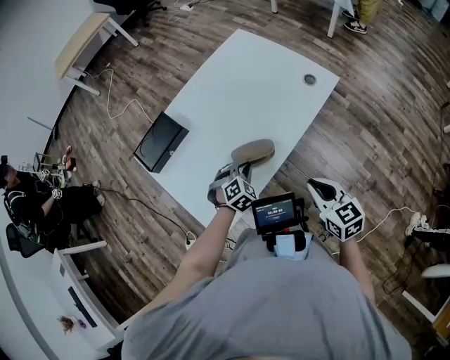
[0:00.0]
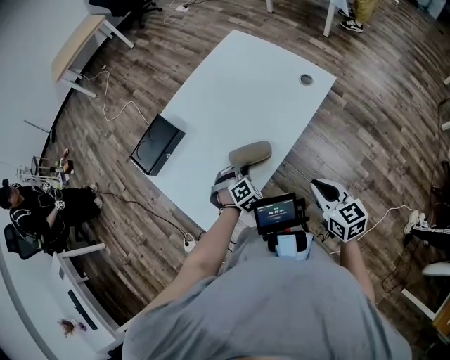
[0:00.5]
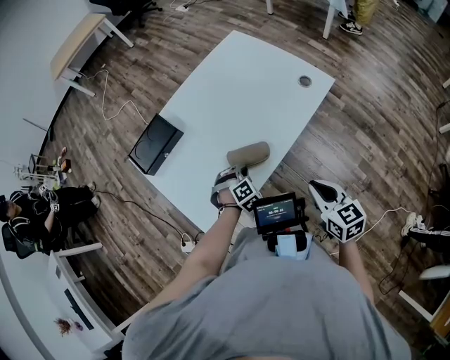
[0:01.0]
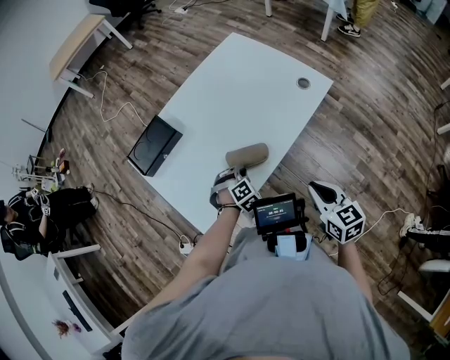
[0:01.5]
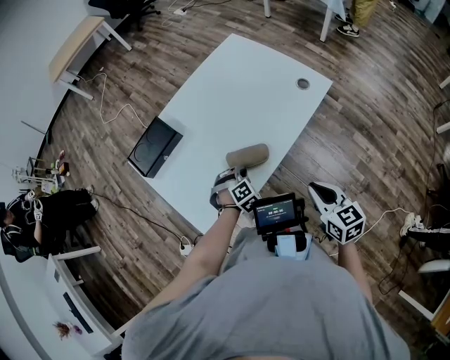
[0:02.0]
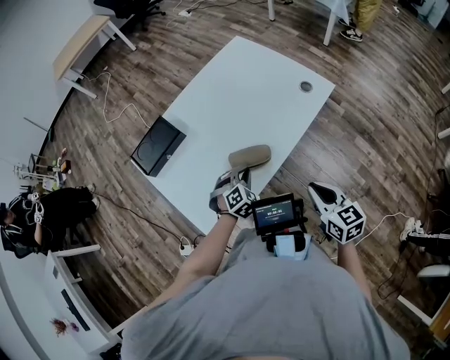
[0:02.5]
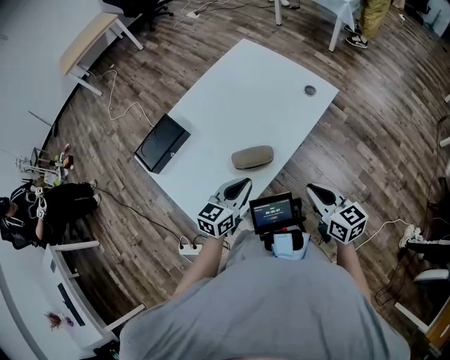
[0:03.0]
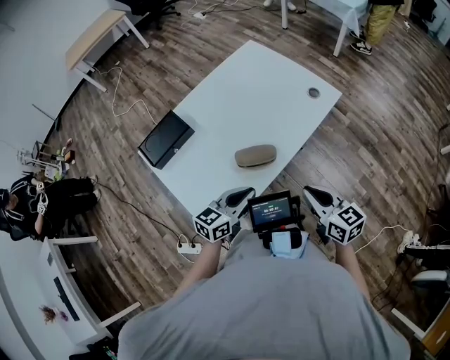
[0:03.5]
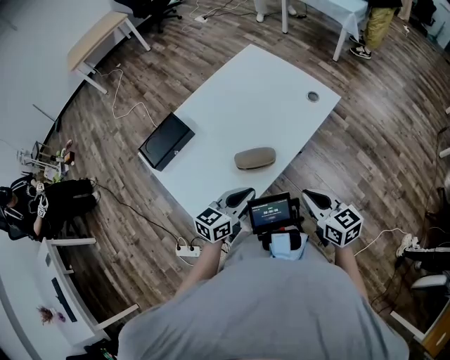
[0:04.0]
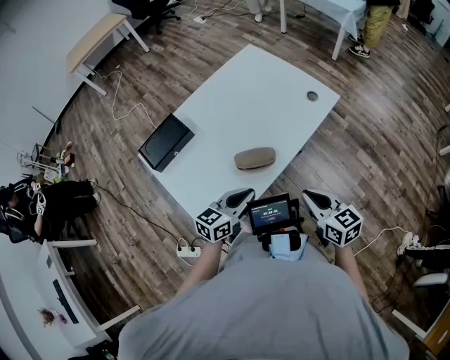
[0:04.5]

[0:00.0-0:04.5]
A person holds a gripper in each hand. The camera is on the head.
0:00.0 to 0:02.0: The grippers stay close to where they were, moving slightly.
0:02.0 to 0:04.5: The left gripper travels upward and backward by some 15 cm, and angles its fingers upward, by approximately 40 degrees.

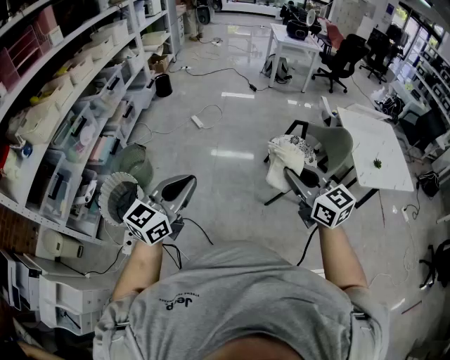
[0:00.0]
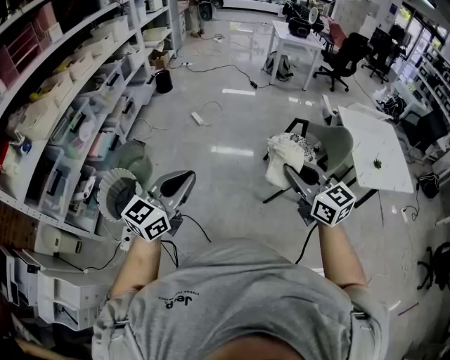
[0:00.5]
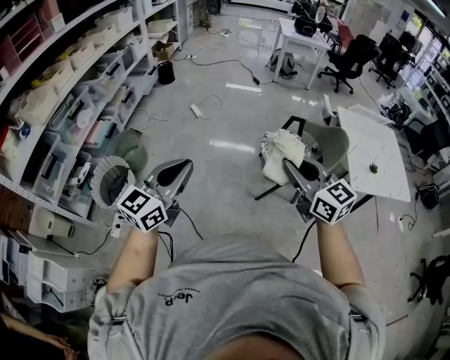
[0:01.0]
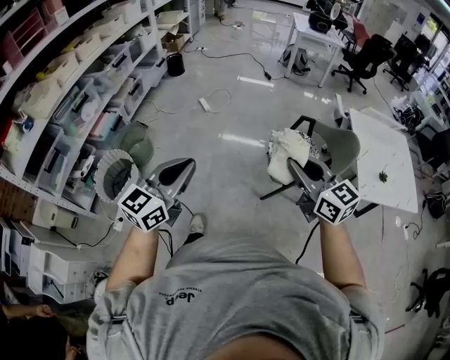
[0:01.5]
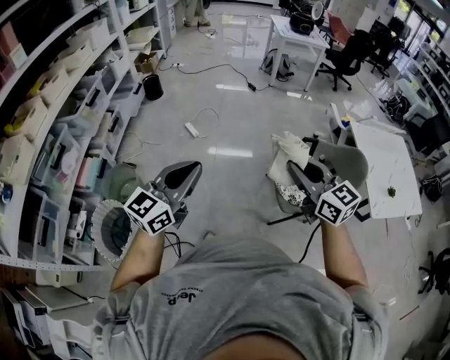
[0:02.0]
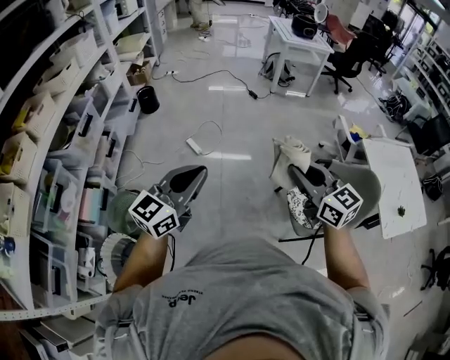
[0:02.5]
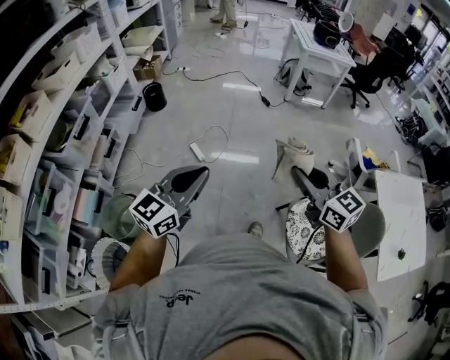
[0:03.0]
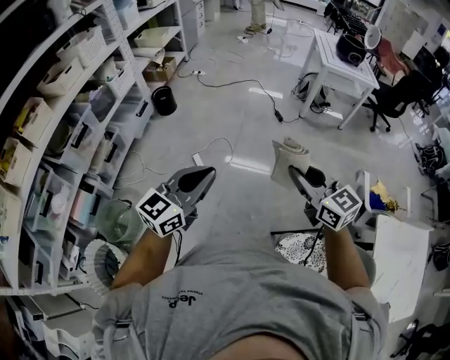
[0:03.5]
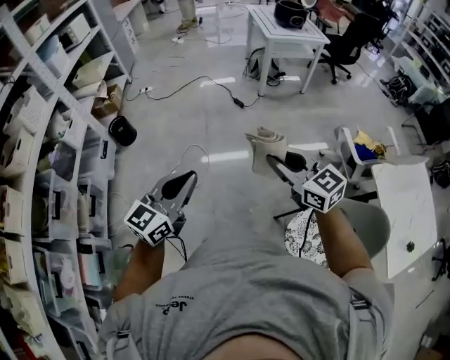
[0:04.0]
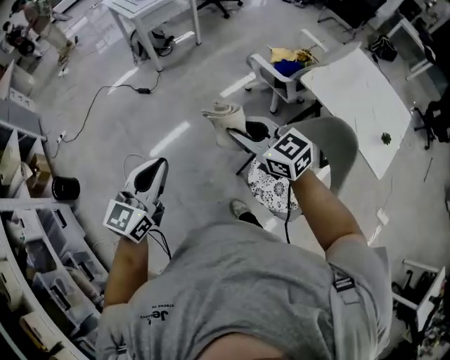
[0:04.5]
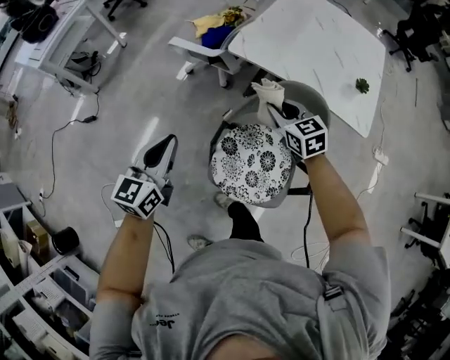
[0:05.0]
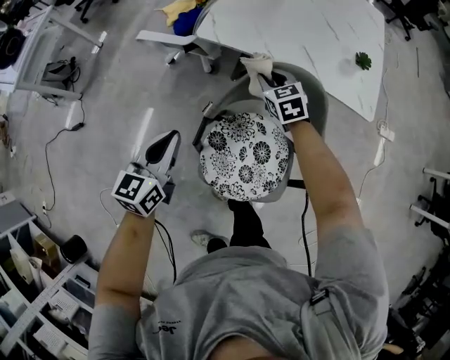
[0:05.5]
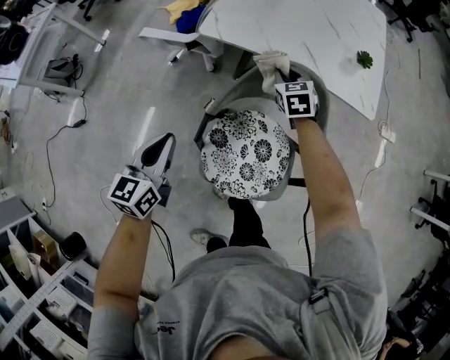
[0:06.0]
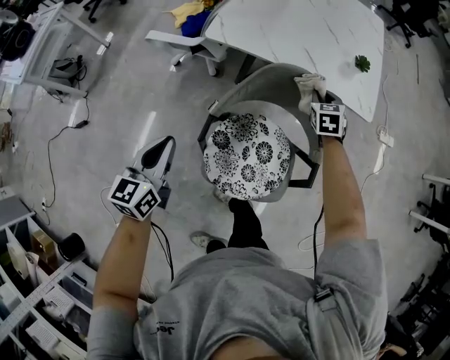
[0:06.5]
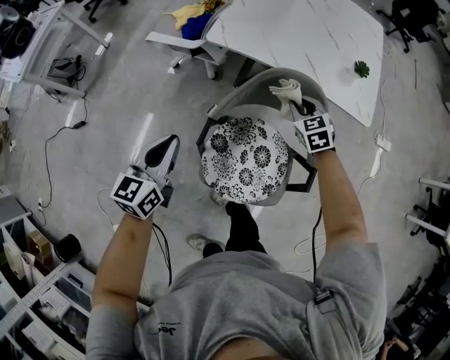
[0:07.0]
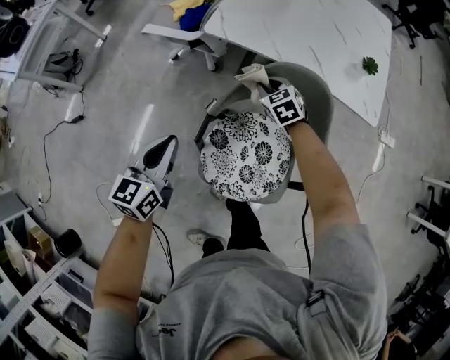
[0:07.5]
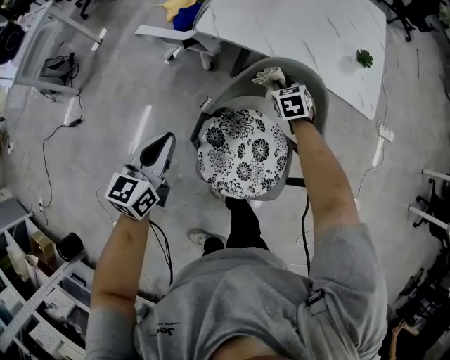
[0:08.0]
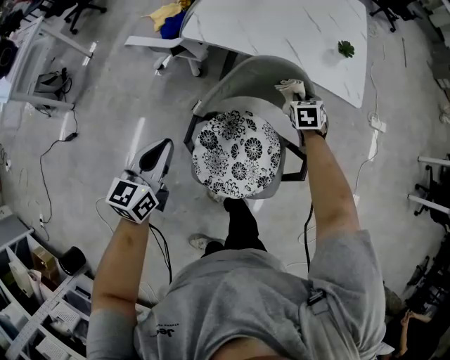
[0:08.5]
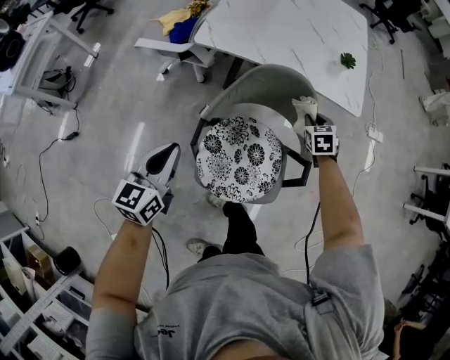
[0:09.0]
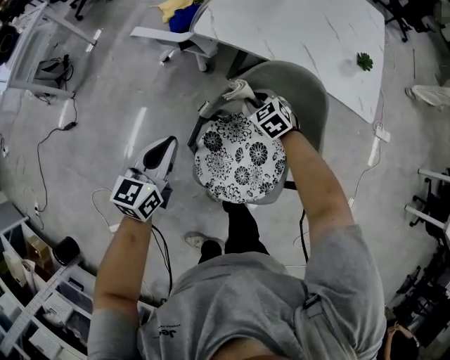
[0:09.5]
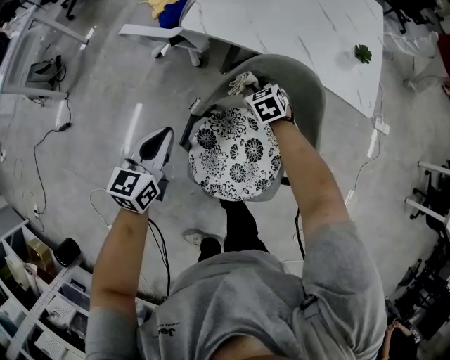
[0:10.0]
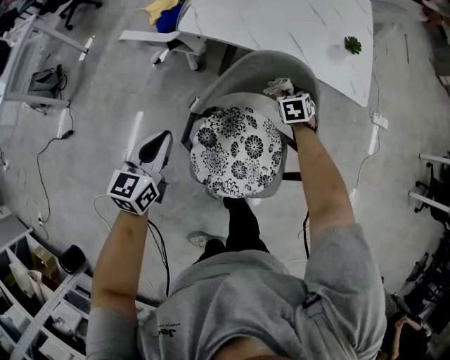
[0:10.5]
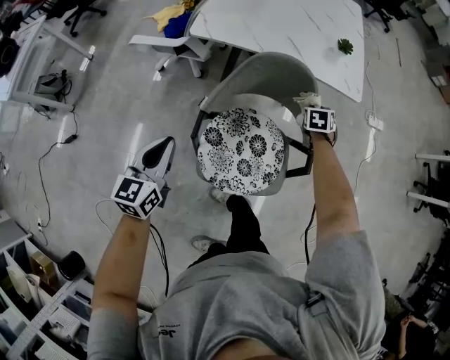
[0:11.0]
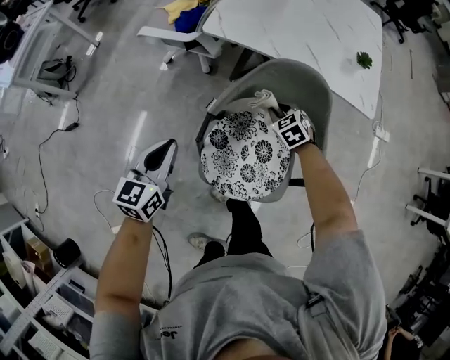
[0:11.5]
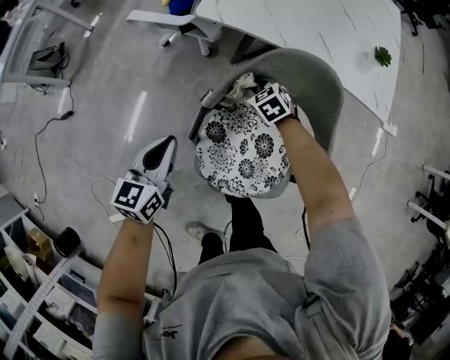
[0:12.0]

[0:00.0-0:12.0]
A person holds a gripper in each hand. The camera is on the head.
0:00.0 to 0:02.0: The two grippers go approximately 30 cm forward.
0:02.0 to 0:04.0: The two grippers travel together, forward, some 60 cm.
0:04.0 to 0:06.0: The two grippers travel together, roughly 70 cm. The left gripper turns by roughly 50 degrees. The right gripper tilts its fingers approximately 30 degrees downward.
0:06.0 to 0:08.0: The right gripper goes left and right, some 20 cm each way, reversing 2 times.
0:08.0 to 0:10.0: The two grippers go some 5 cm downward. The right gripper travels to the right and back again, roughly 15 cm each way.

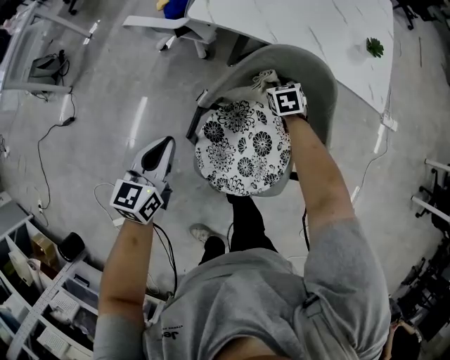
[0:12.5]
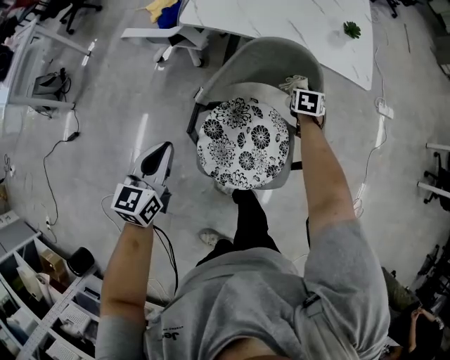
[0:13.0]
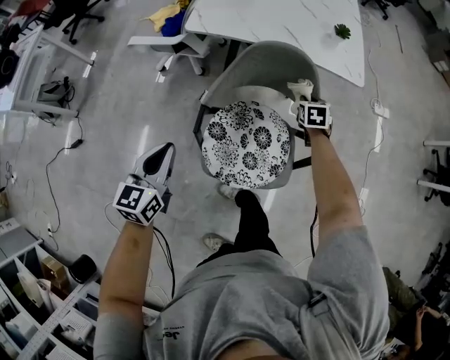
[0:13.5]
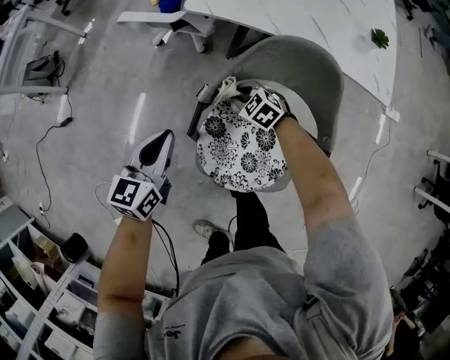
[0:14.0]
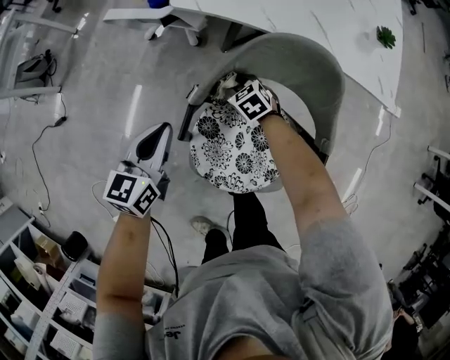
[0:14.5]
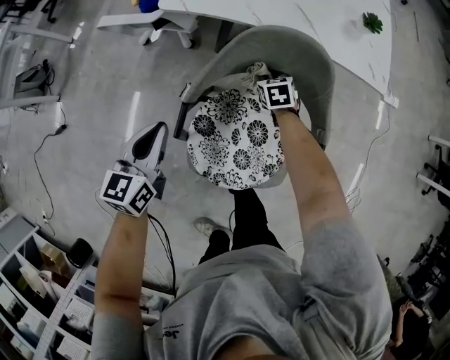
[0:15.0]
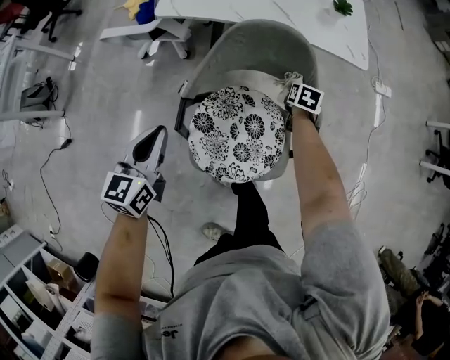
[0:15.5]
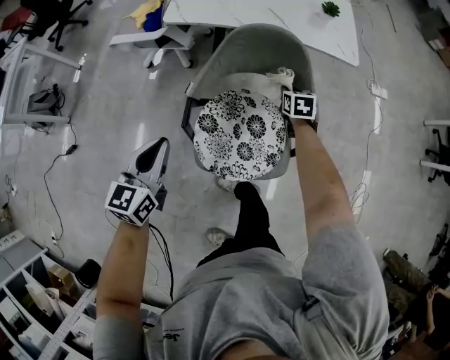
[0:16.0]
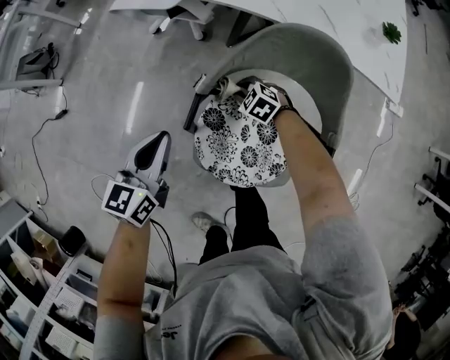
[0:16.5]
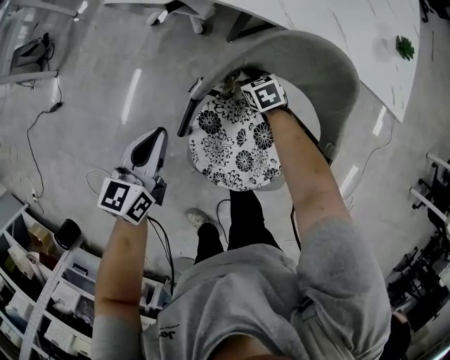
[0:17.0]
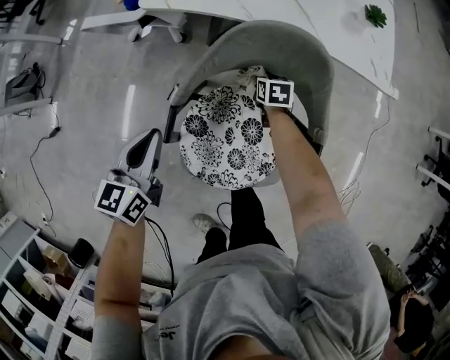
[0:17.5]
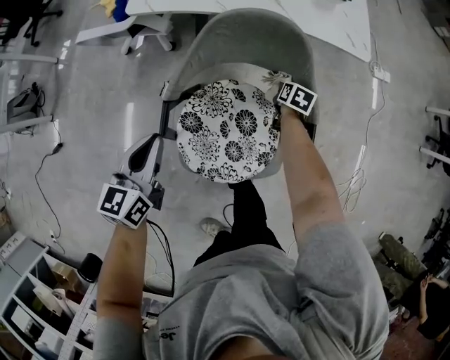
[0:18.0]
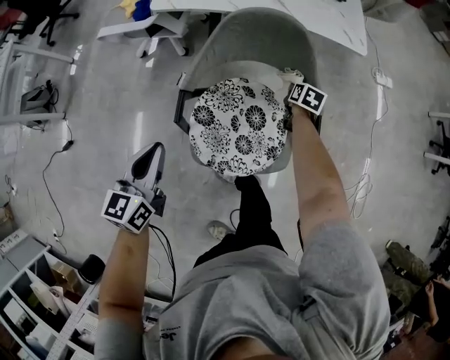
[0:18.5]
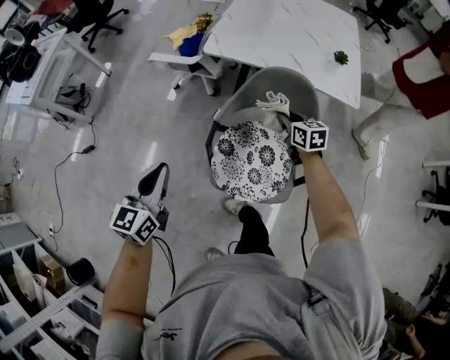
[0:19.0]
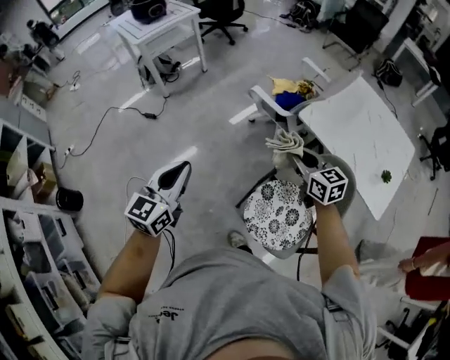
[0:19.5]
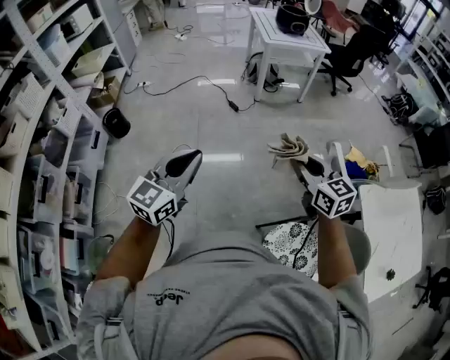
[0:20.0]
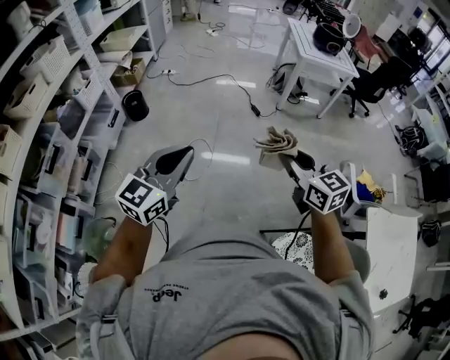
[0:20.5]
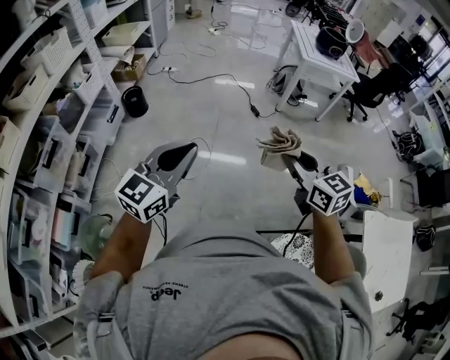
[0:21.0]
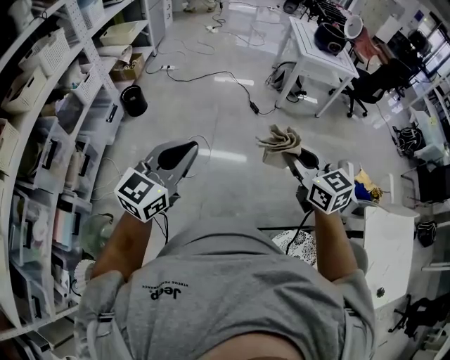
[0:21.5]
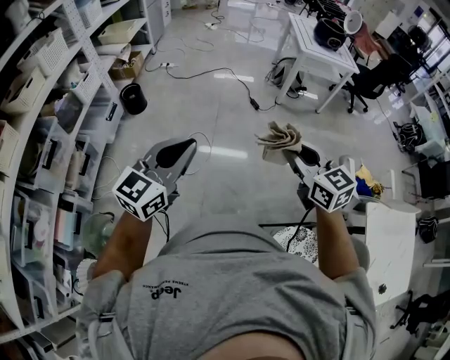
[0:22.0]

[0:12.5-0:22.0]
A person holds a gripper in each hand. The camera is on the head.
0:12.5 to 0:14.5: The left gripper moves some 5 cm upward and comes back; the right gripper moves about 15 cm, and swivels approximately 20 degrees.
0:14.5 to 0:16.5: The right gripper moves roughly 10 cm upward and comes back, and turns by about 20 degrees.
0:16.5 to 0:18.0: The right gripper moves approximately 30 cm, and rotates around the line of its fingers by about 80 degrees, clockwise from behind, while the left gripper moves approximately 5 cm.
0:18.0 to 0:20.0: Both grippers are carried some 60 cm. The right gripper tilts its fingers approximately 50 degrees upward. Meanwhile the left gripper changes its angle by about 70 degrees.
0:20.0 to 0:22.0: Both grippers move to the left, roughly 20 cm.

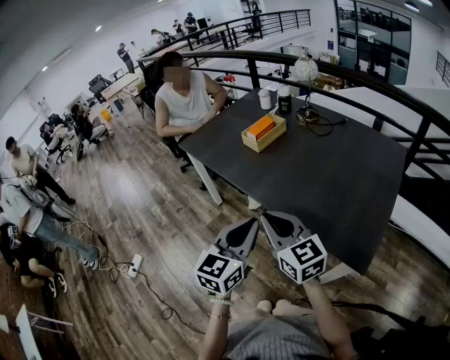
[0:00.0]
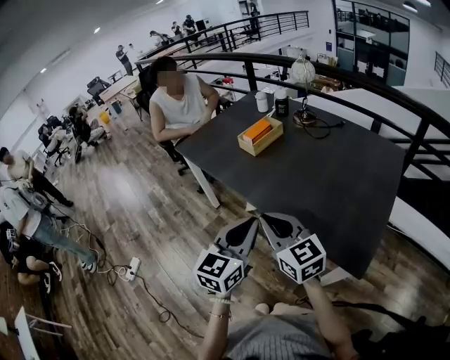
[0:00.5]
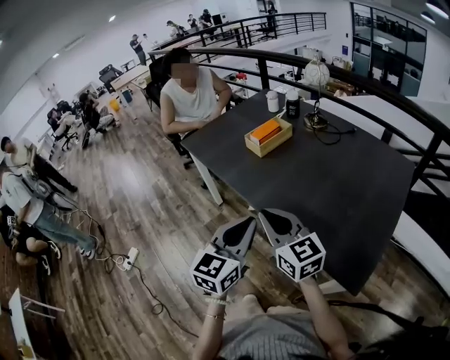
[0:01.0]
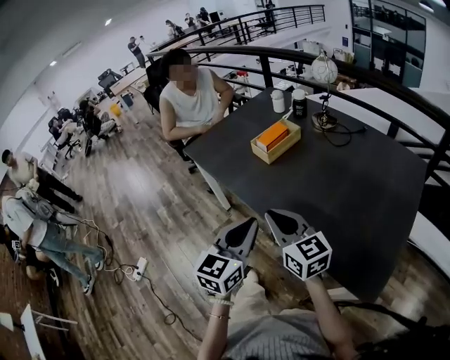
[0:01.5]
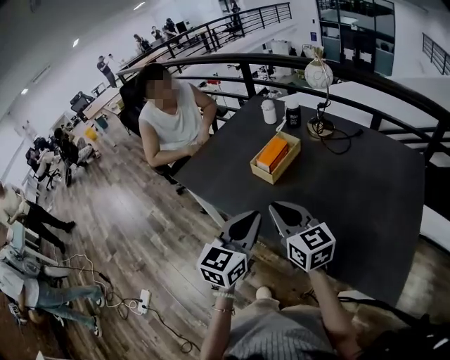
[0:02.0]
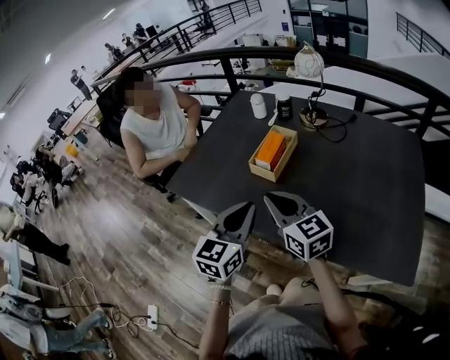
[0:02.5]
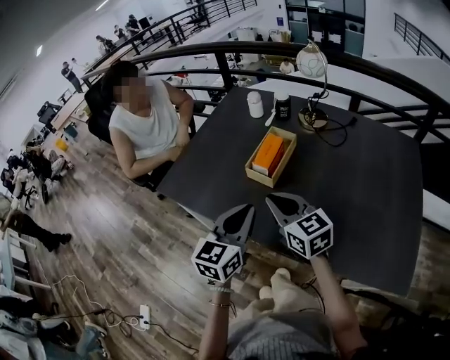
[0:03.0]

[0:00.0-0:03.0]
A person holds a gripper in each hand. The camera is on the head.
0:00.0 to 0:01.5: The grippers both shift forward by roughly 10 cm.
0:01.5 to 0:03.0: The left gripper shifts approximately 20 cm forward and to the left; the right gripper goes approximately 20 cm forward.
